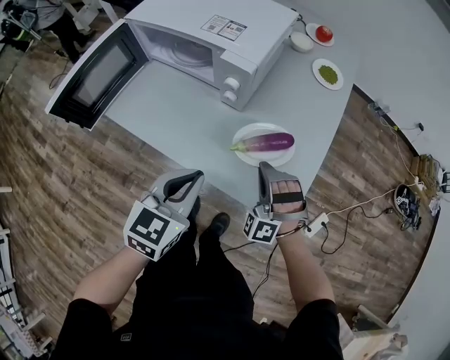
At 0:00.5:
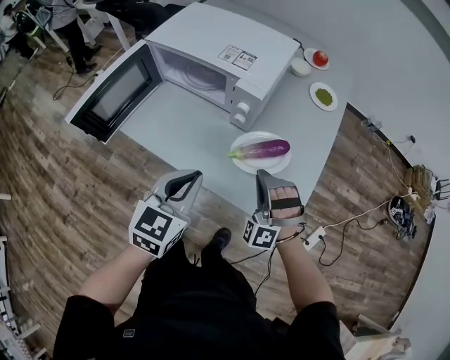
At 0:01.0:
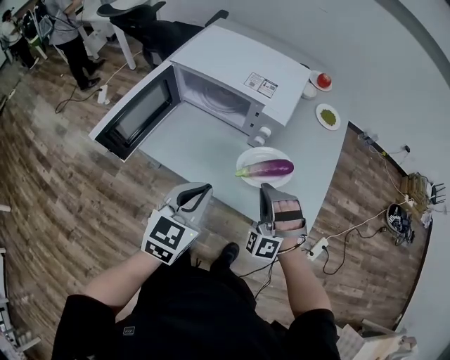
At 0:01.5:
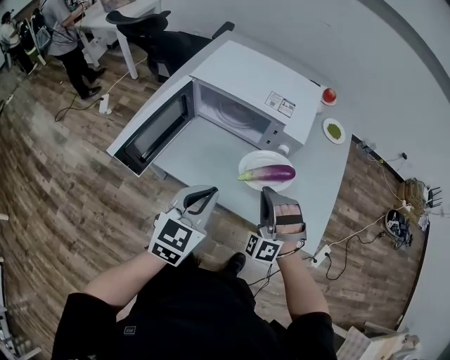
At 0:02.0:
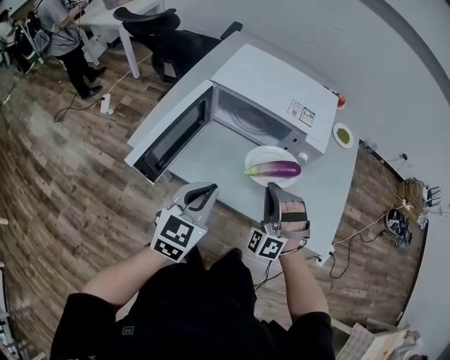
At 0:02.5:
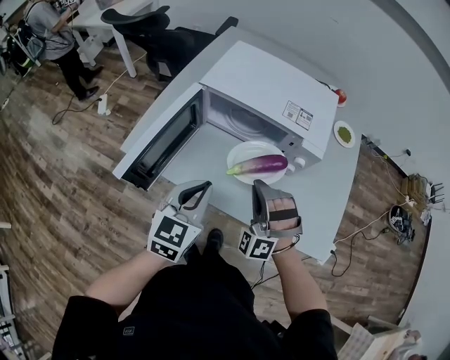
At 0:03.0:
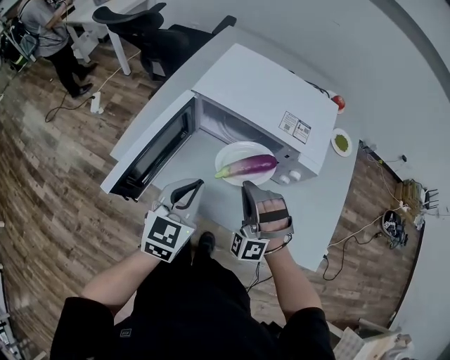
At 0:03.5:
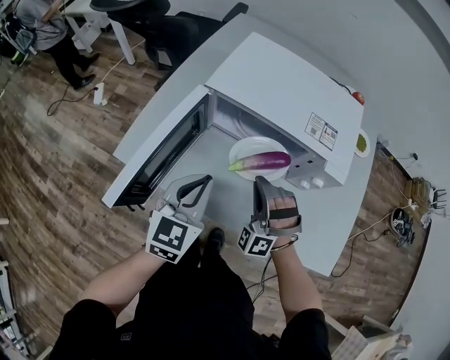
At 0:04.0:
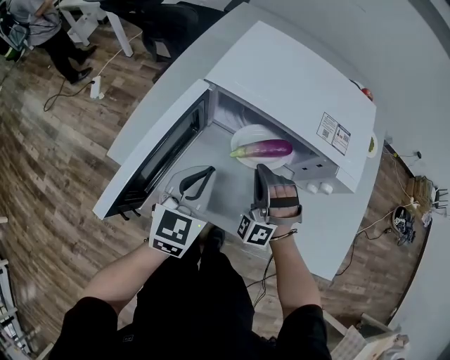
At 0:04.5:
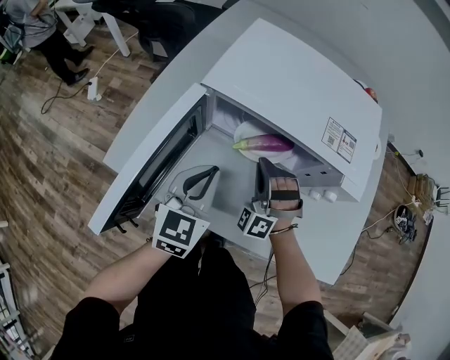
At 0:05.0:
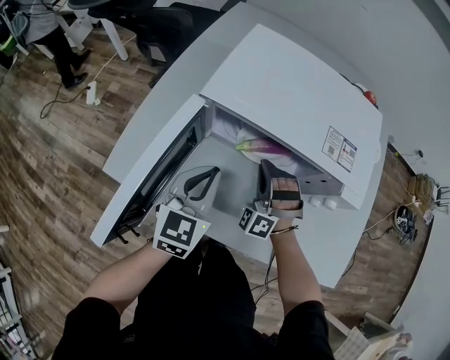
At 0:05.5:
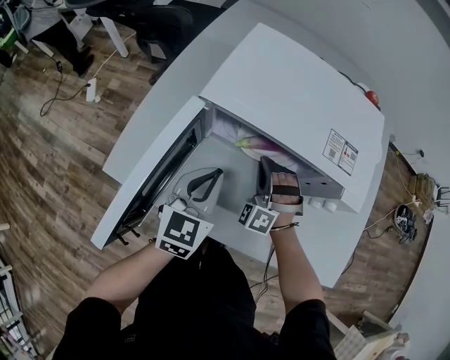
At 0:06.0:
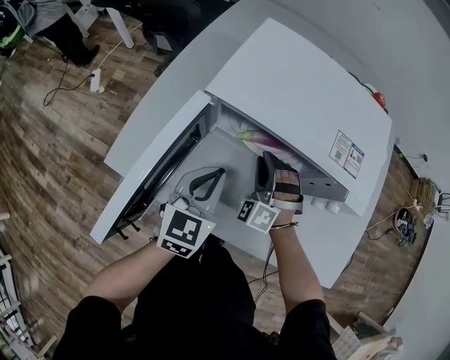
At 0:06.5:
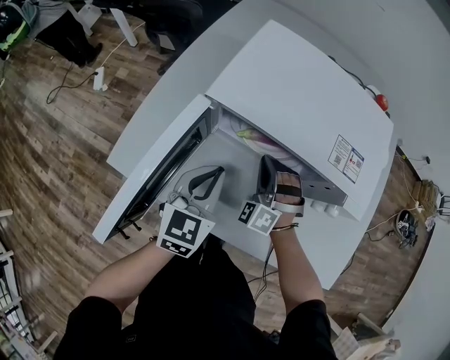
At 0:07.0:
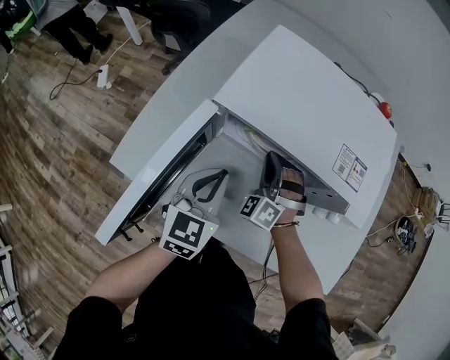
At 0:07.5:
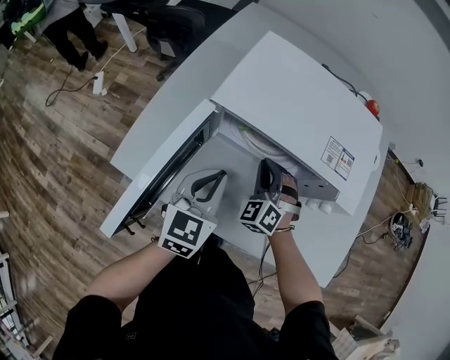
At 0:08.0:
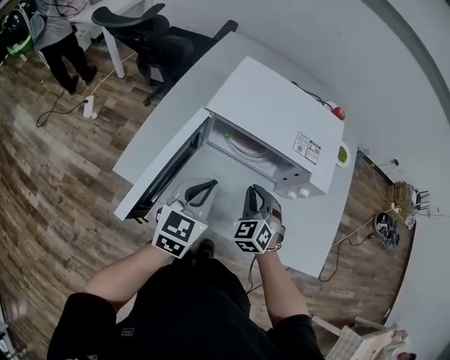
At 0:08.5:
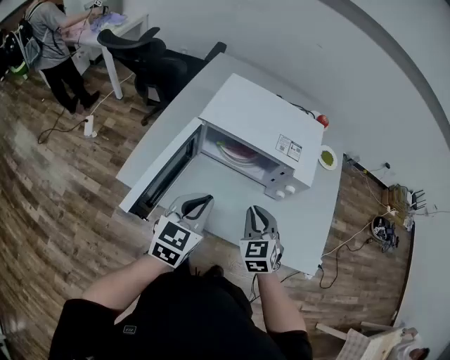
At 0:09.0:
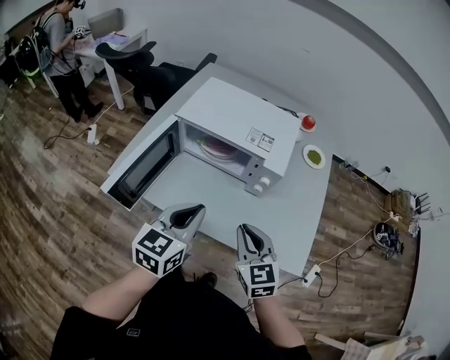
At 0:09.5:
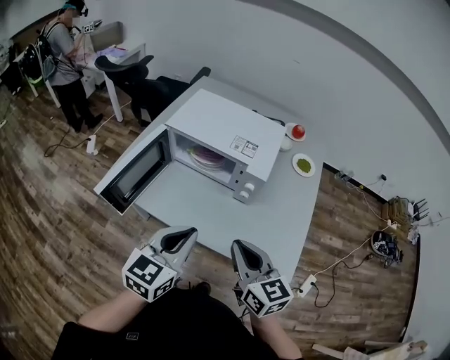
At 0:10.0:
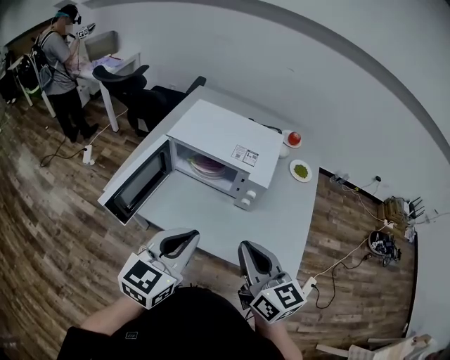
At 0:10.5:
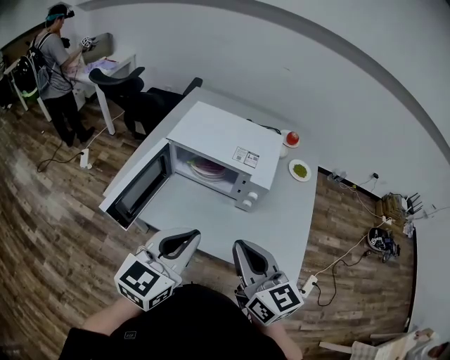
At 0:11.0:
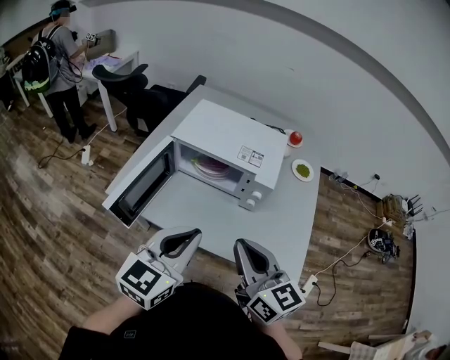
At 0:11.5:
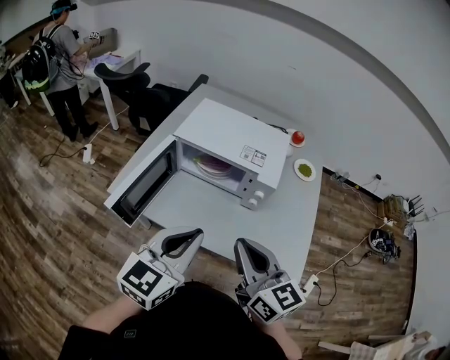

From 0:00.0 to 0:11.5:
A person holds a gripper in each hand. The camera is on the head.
From 0:00.0 to 0:02.0: The right gripper is displaced to the left and upward by some 30 cm; the left gripper travels to the left by roughly 25 cm.
From 0:02.0 to 0:04.0: The left gripper travels forward and downward by about 15 cm. The right gripper moves forward, downward and to the left, about 20 cm.
From 0:04.0 to 0:06.0: The right gripper shifts about 5 cm forward; the left gripper moves some 5 cm.
From 0:06.0 to 0:07.5: The grippers stay close to where they were, moving slightly.
From 0:07.5 to 0:09.5: The right gripper goes roughly 40 cm backward, upward and to the right, and twists approximately 60 degrees clockwise, seen from behind; the left gripper moves backward, to the right and upward, about 30 cm.
From 0:09.5 to 0:11.5: The left gripper is displaced upward by approximately 5 cm. The right gripper shifts some 10 cm upward and to the left.

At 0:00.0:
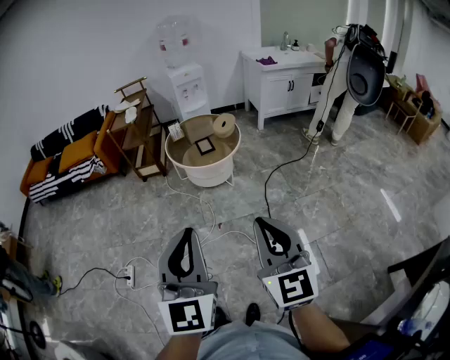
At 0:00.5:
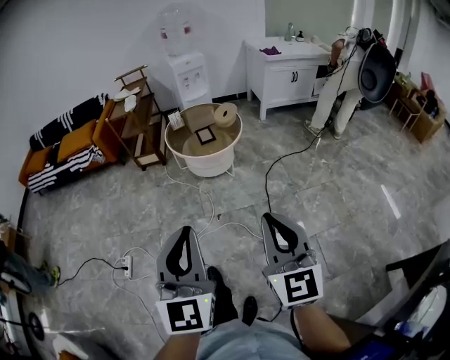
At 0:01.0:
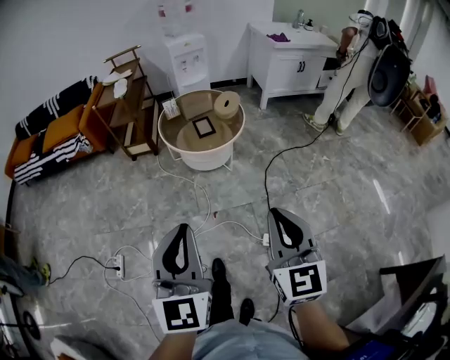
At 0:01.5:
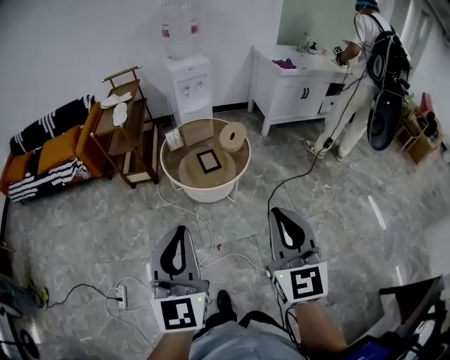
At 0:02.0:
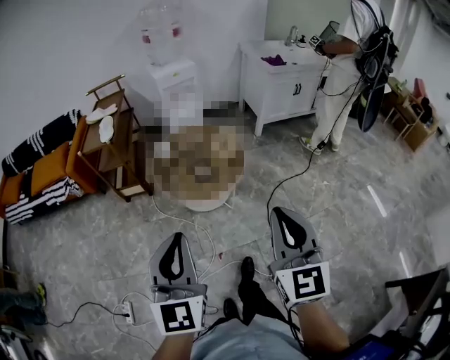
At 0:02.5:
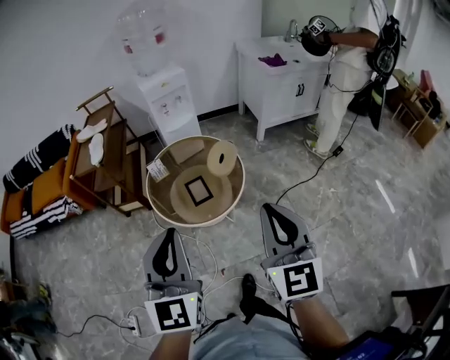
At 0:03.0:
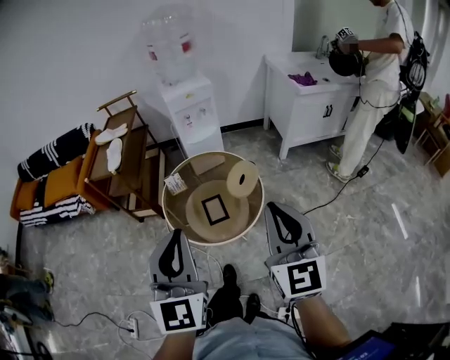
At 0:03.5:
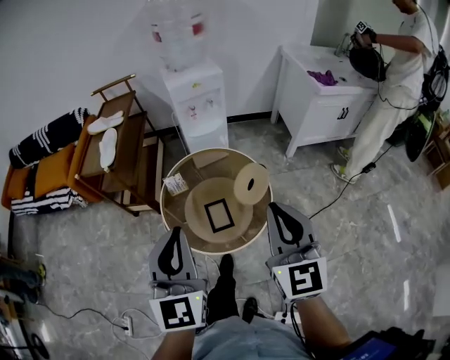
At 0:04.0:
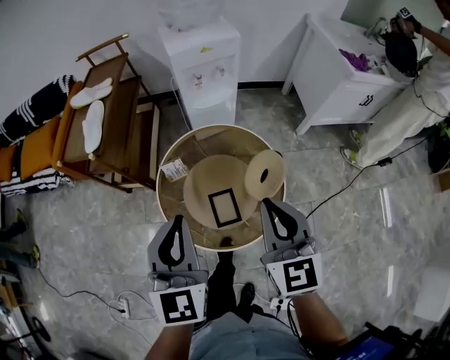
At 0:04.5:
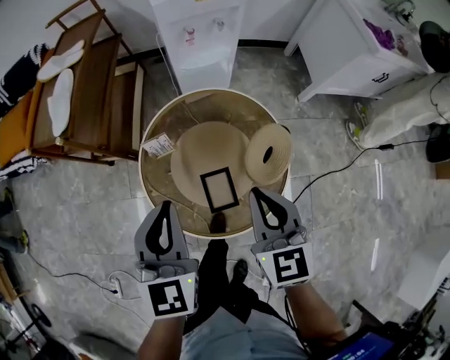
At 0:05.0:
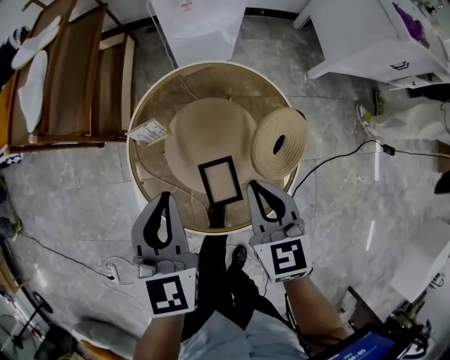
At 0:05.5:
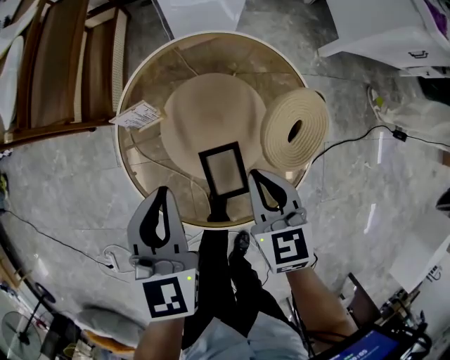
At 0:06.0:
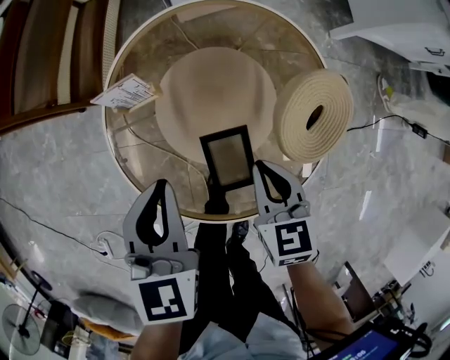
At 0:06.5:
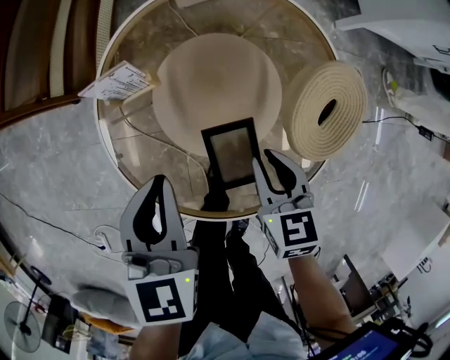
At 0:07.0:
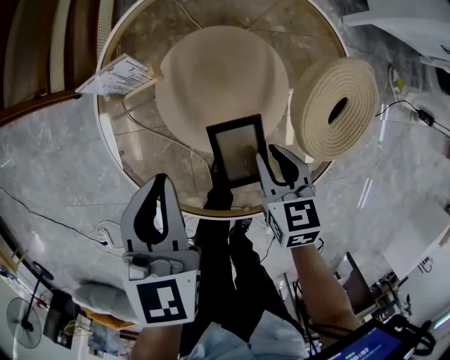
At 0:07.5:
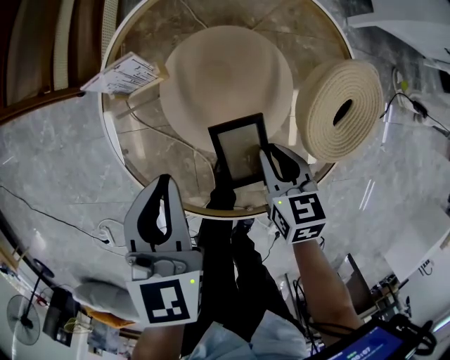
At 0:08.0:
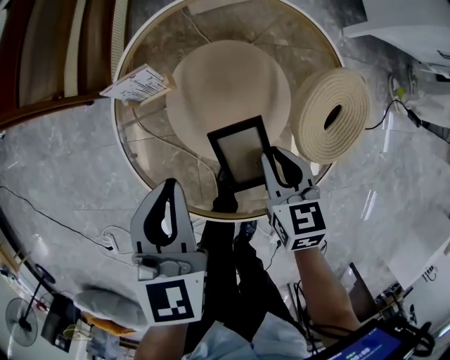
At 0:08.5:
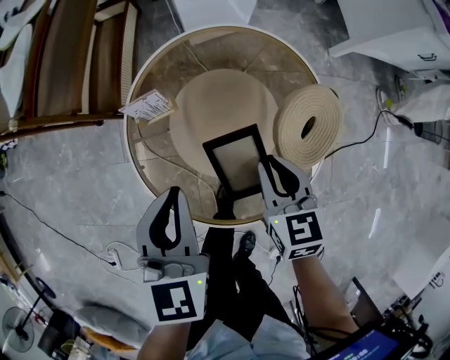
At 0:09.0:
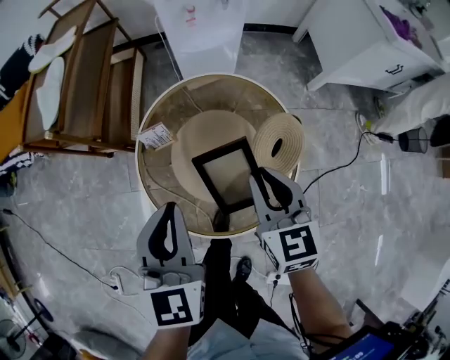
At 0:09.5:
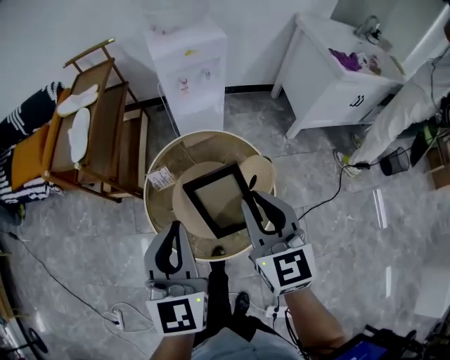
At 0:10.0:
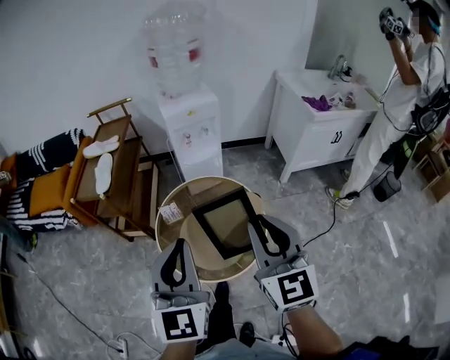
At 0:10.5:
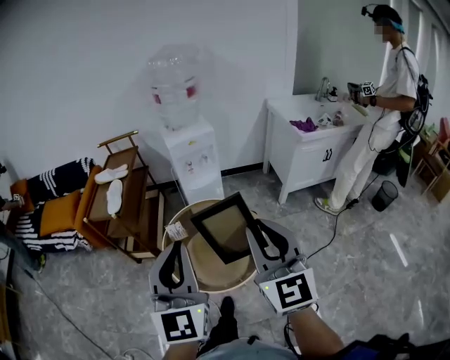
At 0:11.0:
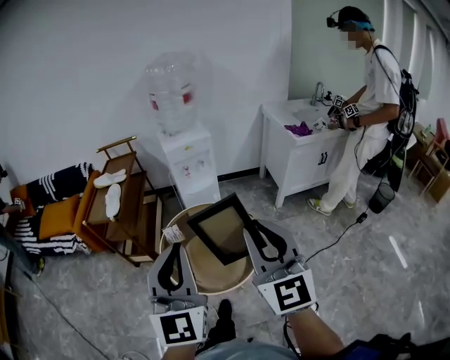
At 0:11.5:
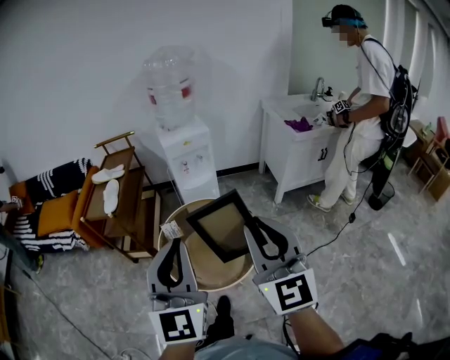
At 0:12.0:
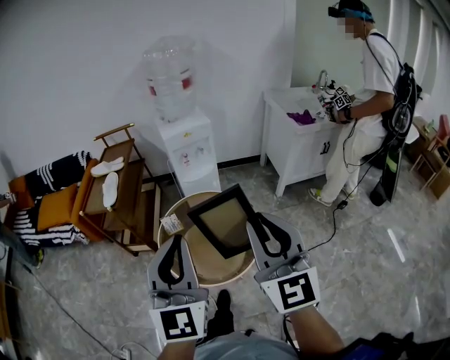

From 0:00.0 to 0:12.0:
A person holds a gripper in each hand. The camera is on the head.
From 0:00.0 to 0:02.0: Both grippers move forward, roughly 40 cm.
From 0:02.0 to 0:04.0: The two grippers travel together, forward, some 50 cm.
From 0:04.0 to 0:06.0: The grippers both shift downward by some 35 cm. The left gripper swivels approximately 30 degrees. The right gripper changes its angle by about 30 degrees.
From 0:08.0 to 0:10.0: The right gripper moves upward, some 60 cm, and tips its fingers upward by roughly 40 degrees. Meanwhile the left gripper goes approximately 50 cm upward and backward, and angles its fingers upward, by about 40 degrees.
From 0:10.0 to 0:12.0: Both grippers move upward and backward, roughly 15 cm.

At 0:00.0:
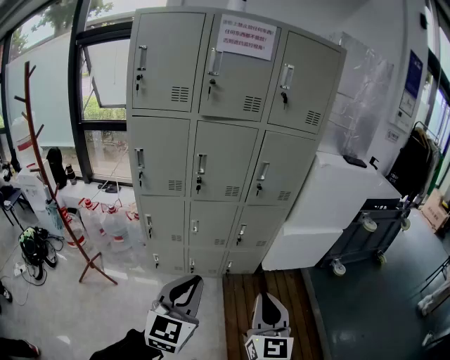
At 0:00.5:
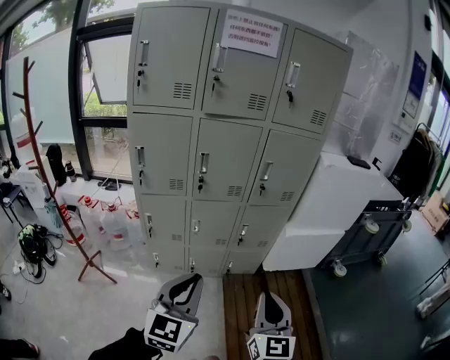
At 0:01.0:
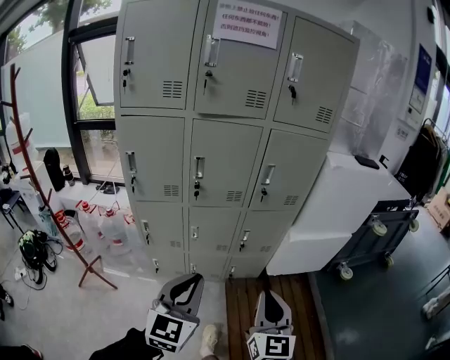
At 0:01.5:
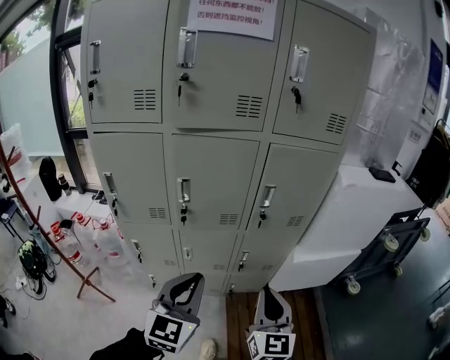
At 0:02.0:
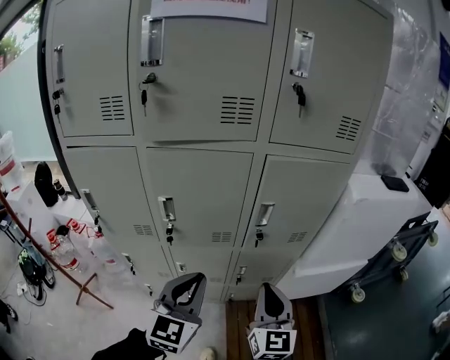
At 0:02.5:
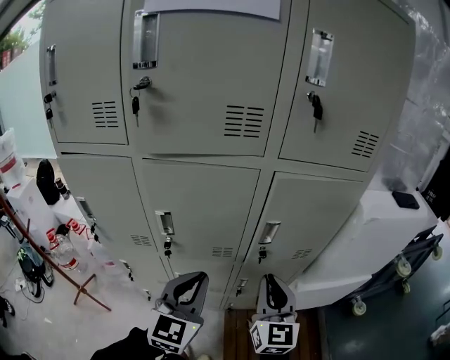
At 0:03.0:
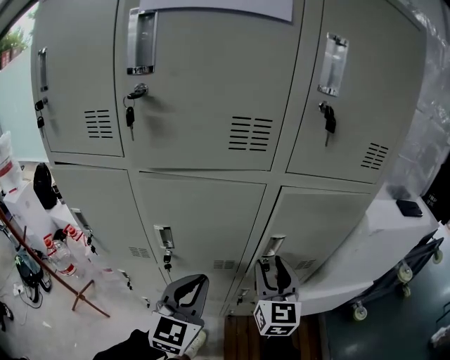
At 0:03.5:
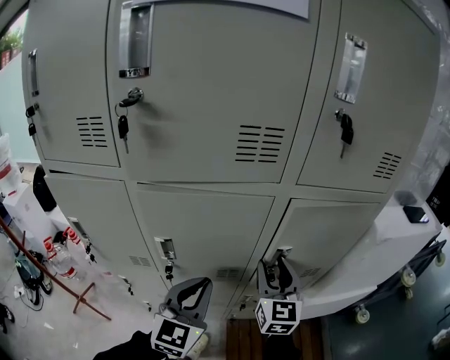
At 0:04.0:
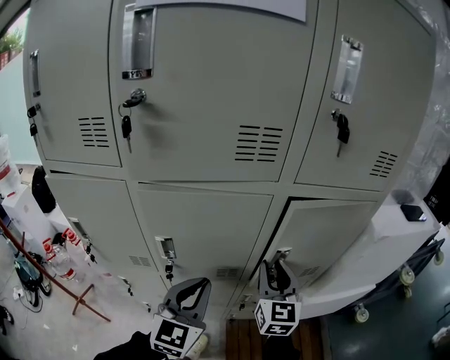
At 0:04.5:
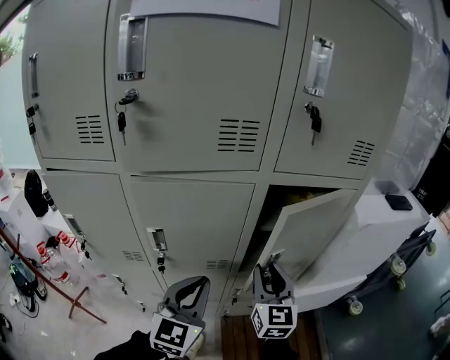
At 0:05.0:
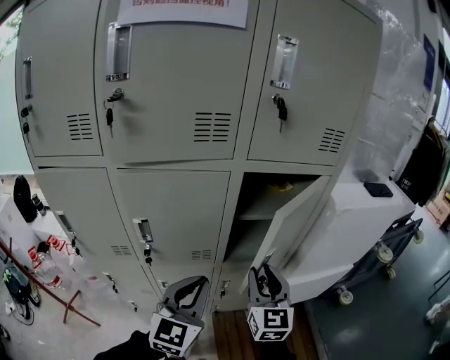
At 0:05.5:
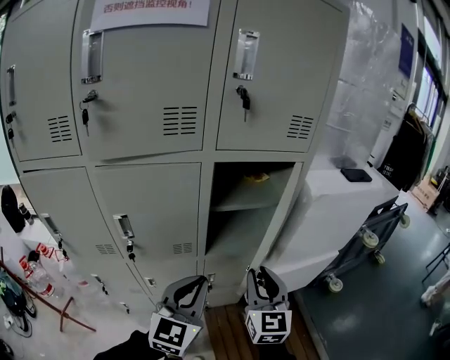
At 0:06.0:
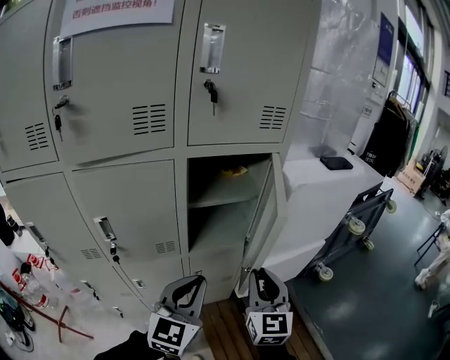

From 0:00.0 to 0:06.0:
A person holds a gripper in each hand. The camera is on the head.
From 0:00.0 to 0:02.0: The grippers both shift forward by about 40 cm.
From 0:02.0 to 0:04.0: The right gripper is displaced forward by roughly 20 cm, and opens. The left gripper is displaced forward by approximately 10 cm.
From 0:04.0 to 0:06.0: The two grippers go approximately 20 cm to the right and backward.
